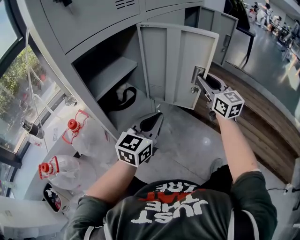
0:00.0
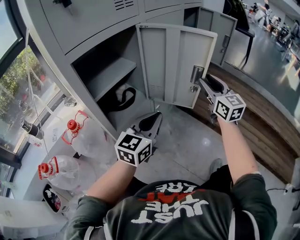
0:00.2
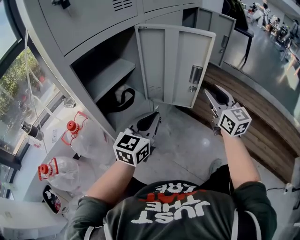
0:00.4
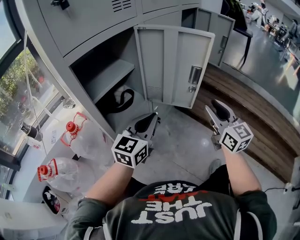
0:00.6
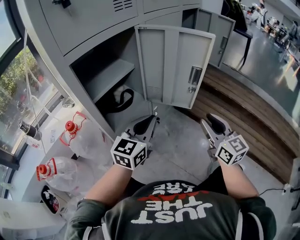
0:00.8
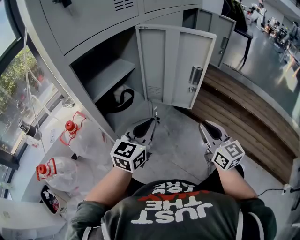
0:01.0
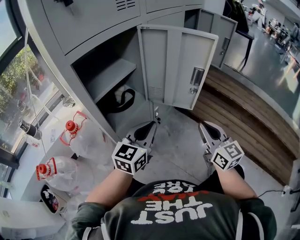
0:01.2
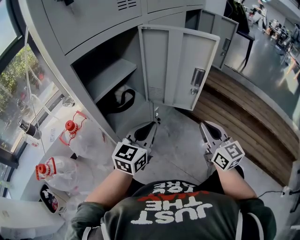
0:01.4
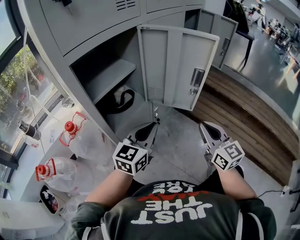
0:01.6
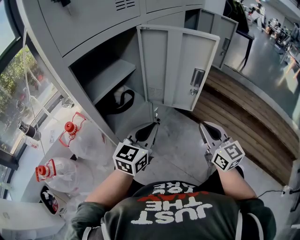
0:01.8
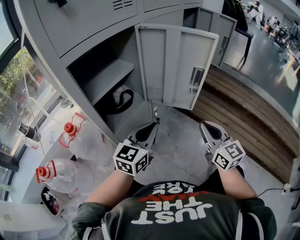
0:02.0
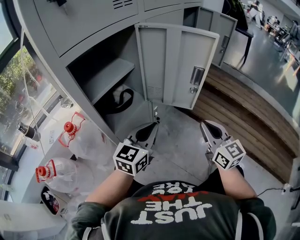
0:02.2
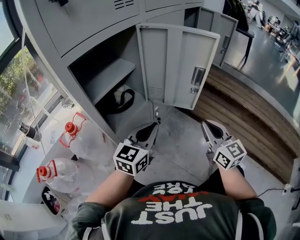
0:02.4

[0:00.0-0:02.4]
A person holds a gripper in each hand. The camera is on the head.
0:00.0 to 0:01.2: The right gripper is displaced backward and downward by approximately 20 cm.
0:01.2 to 0:02.4: Both grippers stay about where they are.

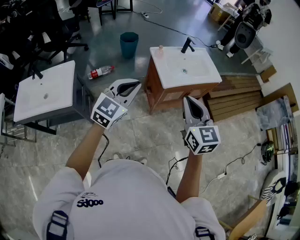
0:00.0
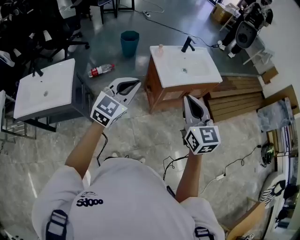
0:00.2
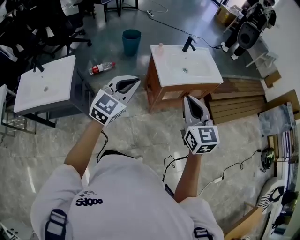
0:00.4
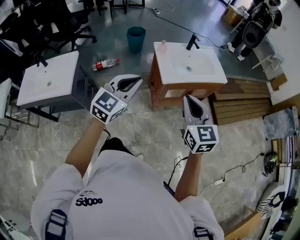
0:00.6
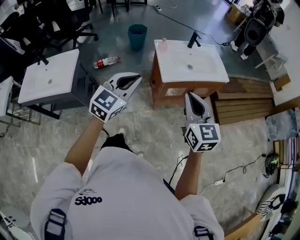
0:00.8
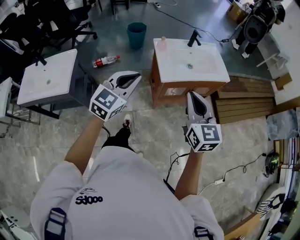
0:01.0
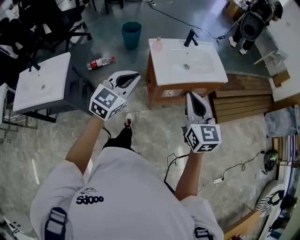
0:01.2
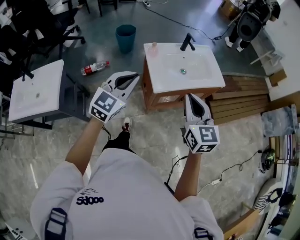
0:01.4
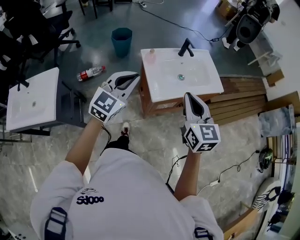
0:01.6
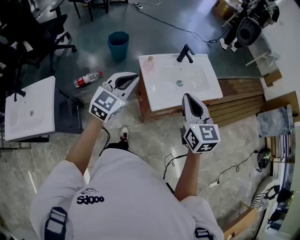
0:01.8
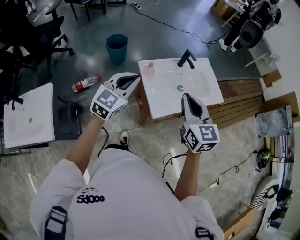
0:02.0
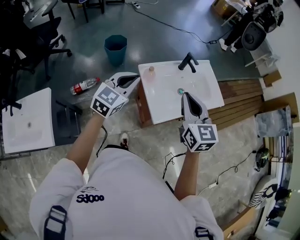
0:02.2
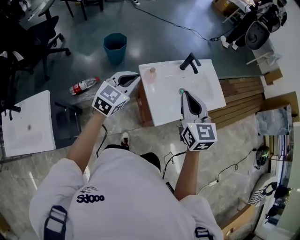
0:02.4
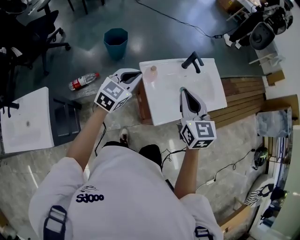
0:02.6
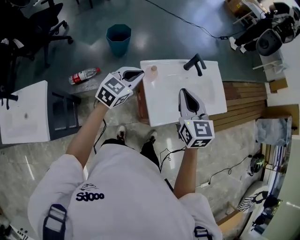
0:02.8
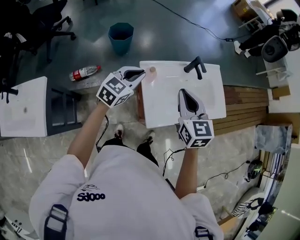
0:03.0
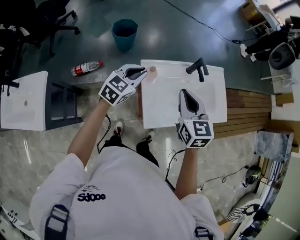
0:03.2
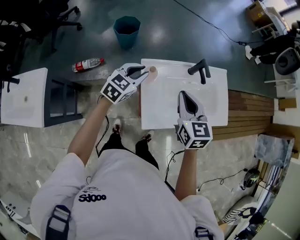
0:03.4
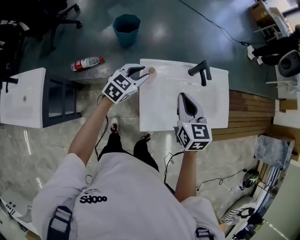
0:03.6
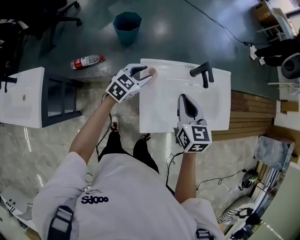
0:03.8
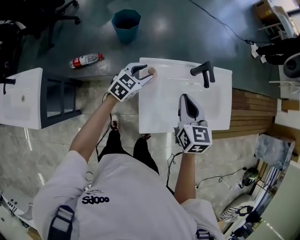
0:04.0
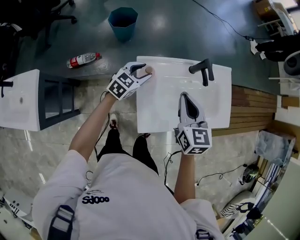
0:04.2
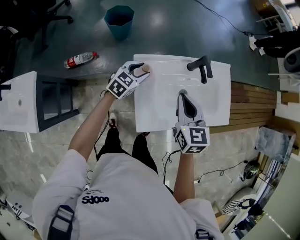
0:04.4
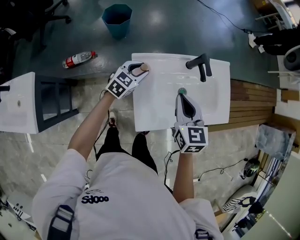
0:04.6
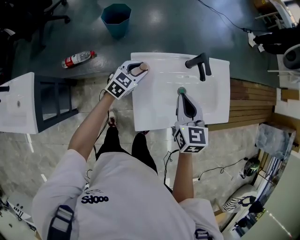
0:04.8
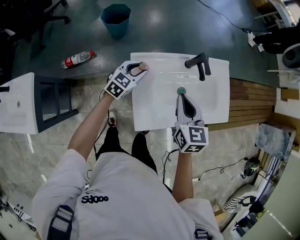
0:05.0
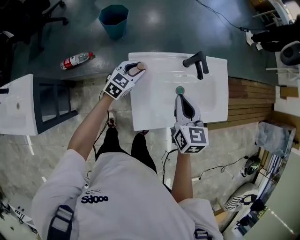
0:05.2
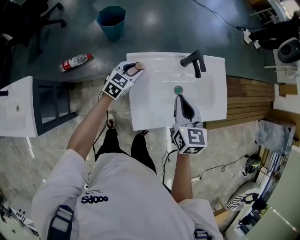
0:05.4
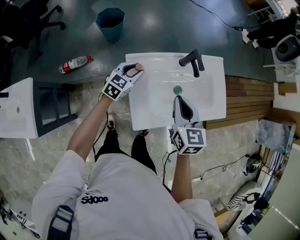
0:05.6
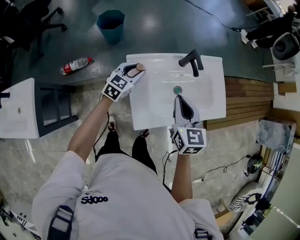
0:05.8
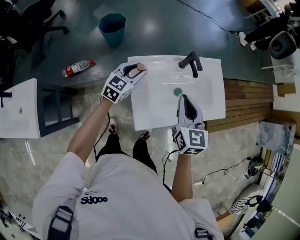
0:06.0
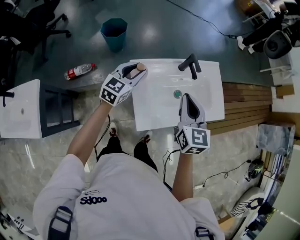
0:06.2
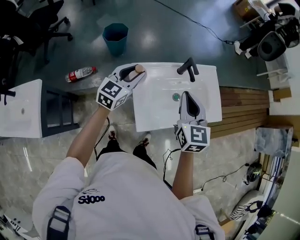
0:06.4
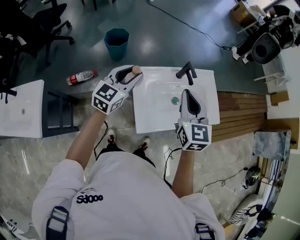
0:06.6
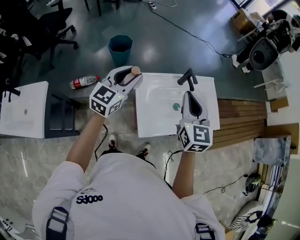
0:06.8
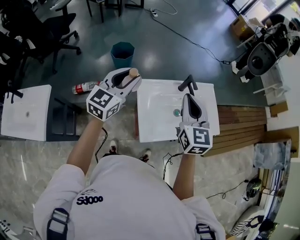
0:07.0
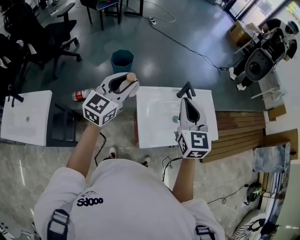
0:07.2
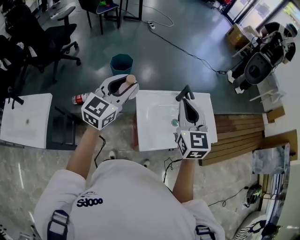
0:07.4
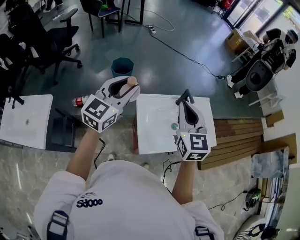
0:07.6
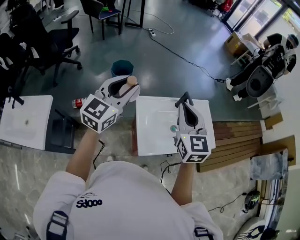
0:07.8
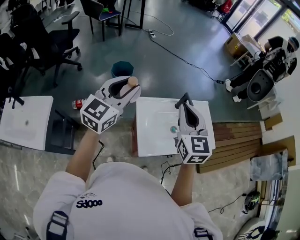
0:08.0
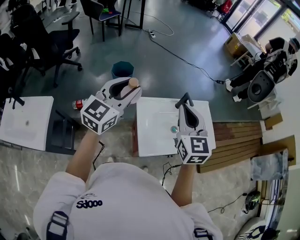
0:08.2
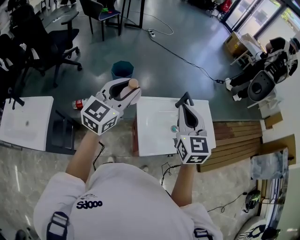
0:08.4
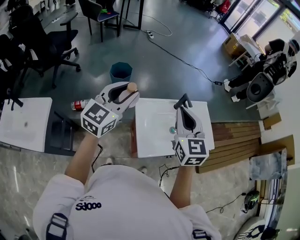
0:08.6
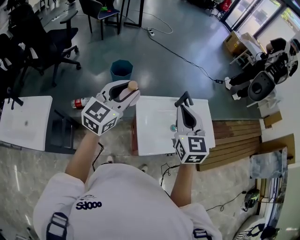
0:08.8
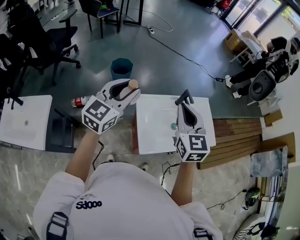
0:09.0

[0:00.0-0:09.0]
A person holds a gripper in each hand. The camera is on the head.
0:00.0 to 0:01.6: The two grippers go roughly 20 cm forward.
0:01.6 to 0:03.0: The right gripper shifts approximately 20 cm forward, while the left gripper travels forward and downward by approximately 25 cm, and turns by some 20 degrees.
0:03.0 to 0:04.4: The left gripper is displaced downward and forward by roughly 15 cm, and opens up; the right gripper is displaced downward and forward by roughly 10 cm.
0:04.4 to 0:06.0: The right gripper changes place by some 5 cm. The left gripper moves upward, some 5 cm.
0:06.0 to 0:07.6: The right gripper shifts about 15 cm upward and to the left. Meanwhile the left gripper shifts some 25 cm upward, and changes its angle by some 20 degrees.
0:07.6 to 0:09.0: The grippers stay close to where they were, moving slightly.

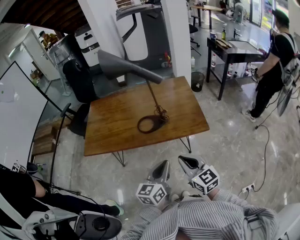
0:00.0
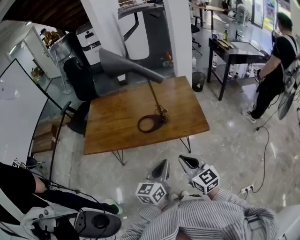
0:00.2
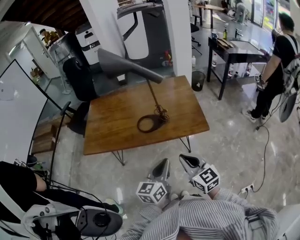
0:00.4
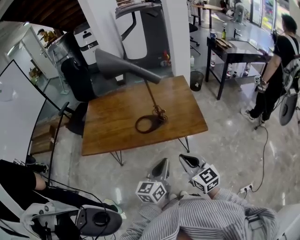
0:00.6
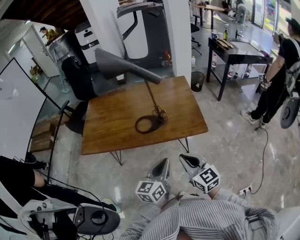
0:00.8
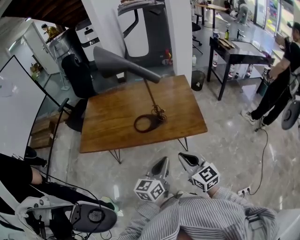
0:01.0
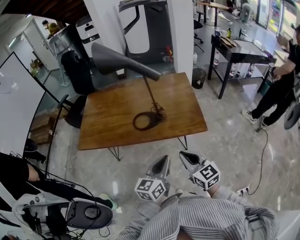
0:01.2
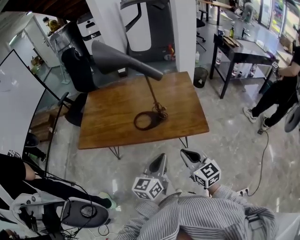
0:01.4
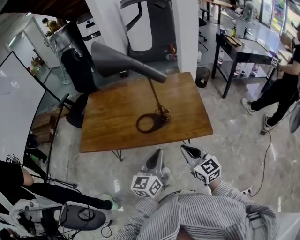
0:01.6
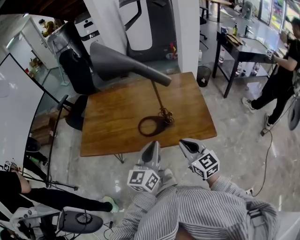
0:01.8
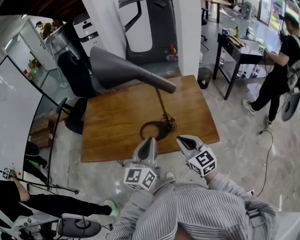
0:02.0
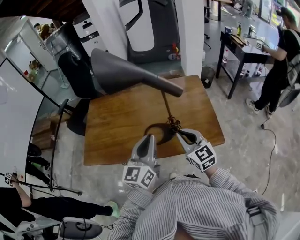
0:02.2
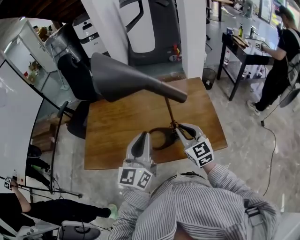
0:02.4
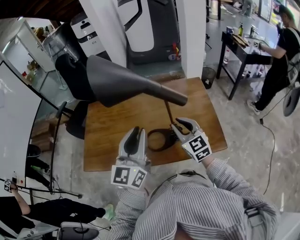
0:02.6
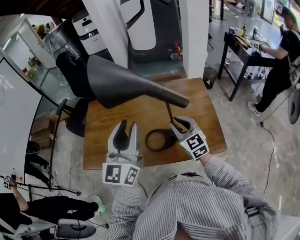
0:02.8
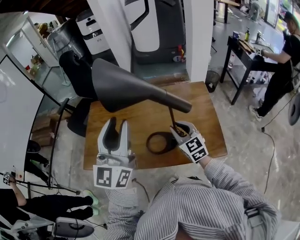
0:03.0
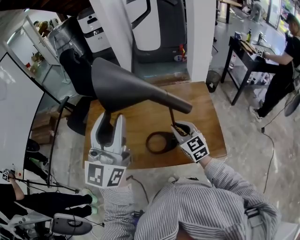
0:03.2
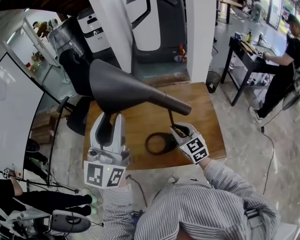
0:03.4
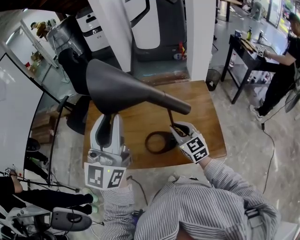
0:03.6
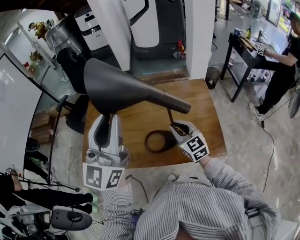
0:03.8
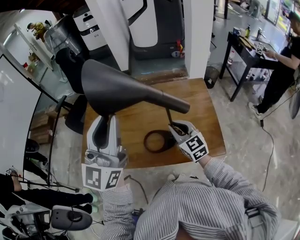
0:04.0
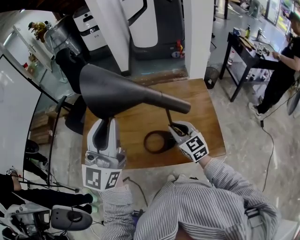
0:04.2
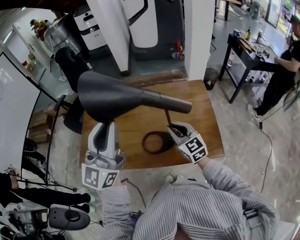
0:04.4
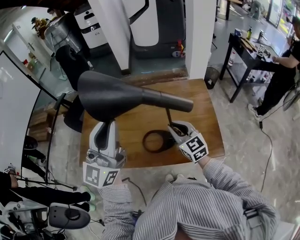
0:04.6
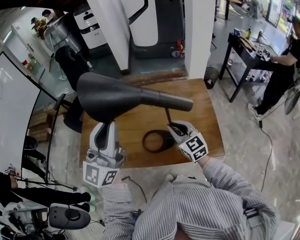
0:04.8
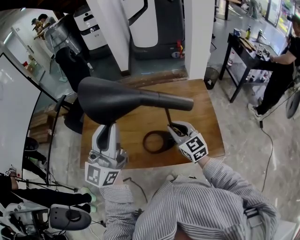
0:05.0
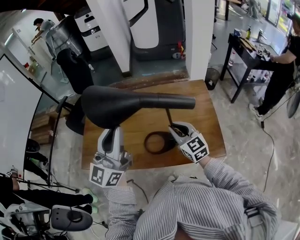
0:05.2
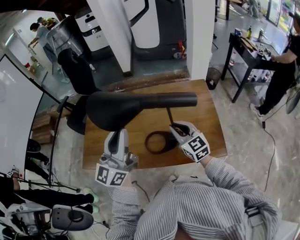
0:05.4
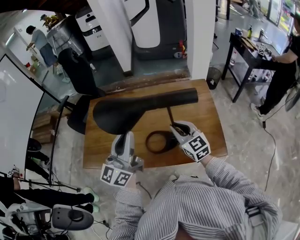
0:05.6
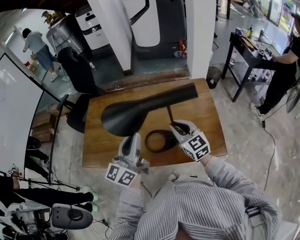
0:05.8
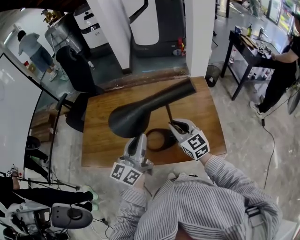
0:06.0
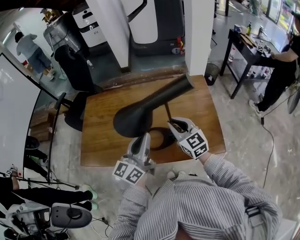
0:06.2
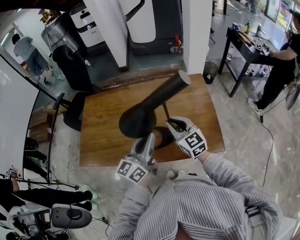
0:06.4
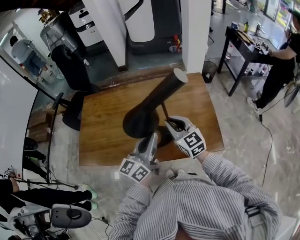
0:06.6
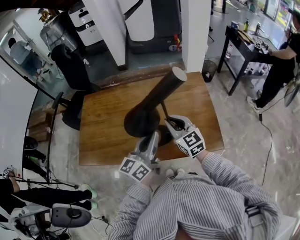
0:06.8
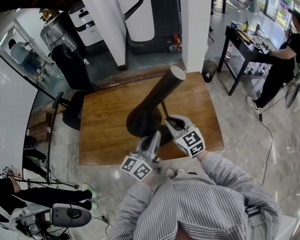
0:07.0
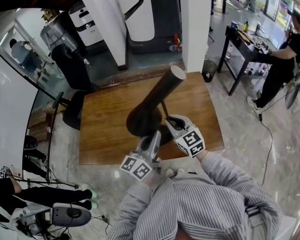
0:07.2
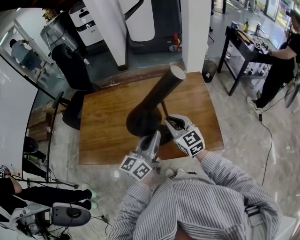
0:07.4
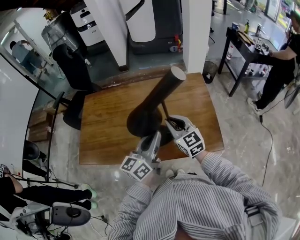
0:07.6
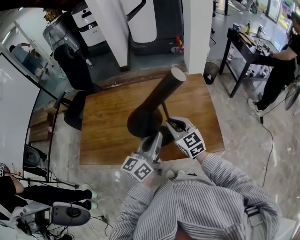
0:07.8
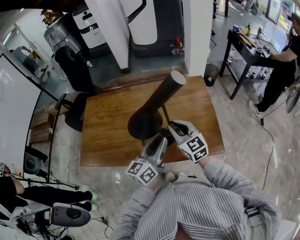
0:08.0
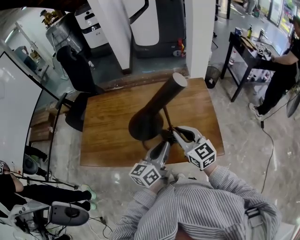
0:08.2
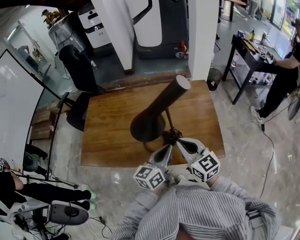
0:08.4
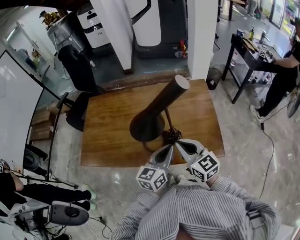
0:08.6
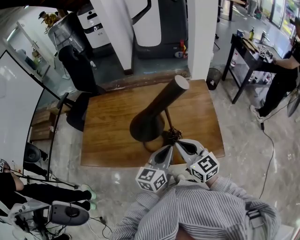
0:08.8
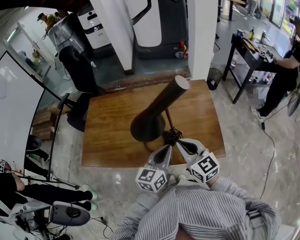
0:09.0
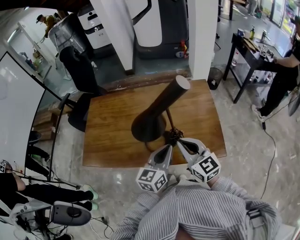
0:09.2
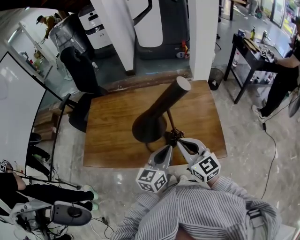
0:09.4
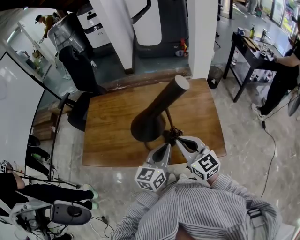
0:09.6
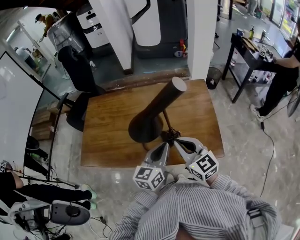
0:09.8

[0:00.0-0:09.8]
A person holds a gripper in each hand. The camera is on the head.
0:00.0 to 0:01.4: The left gripper changes place by approximately 5 cm, while the right gripper moves forward, some 5 cm.
0:01.4 to 0:02.8: The right gripper heads forward, covering some 30 cm. Meanwhile the left gripper moves forward, upward and to the left, roughly 35 cm, changes its angle by roughly 30 degrees, and opens its fingers.
0:02.8 to 0:04.2: The left gripper shifts approximately 5 cm upward.
0:04.2 to 0:05.6: The left gripper goes approximately 10 cm downward, and changes its angle by approximately 20 degrees.
0:05.6 to 0:07.0: The left gripper goes roughly 15 cm to the right and downward, and changes its angle by some 20 degrees.
0:07.0 to 0:08.4: The right gripper goes roughly 10 cm backward; the left gripper moves roughly 5 cm.
0:08.4 to 0:09.8: The grippers stay close to where they were, moving slightly.

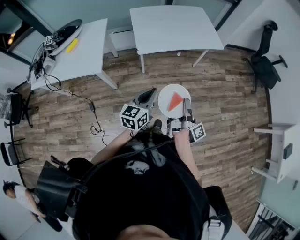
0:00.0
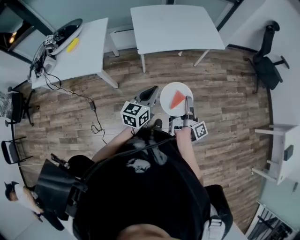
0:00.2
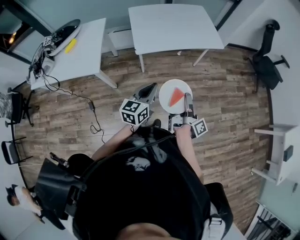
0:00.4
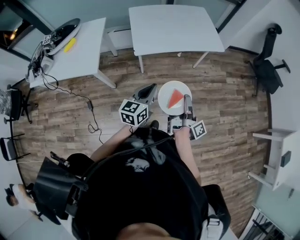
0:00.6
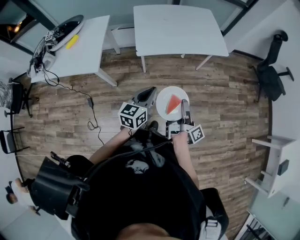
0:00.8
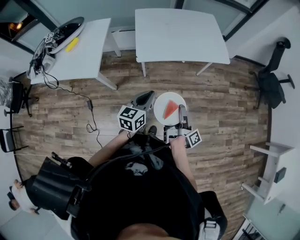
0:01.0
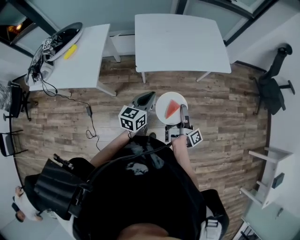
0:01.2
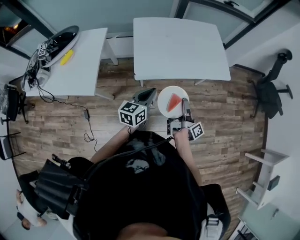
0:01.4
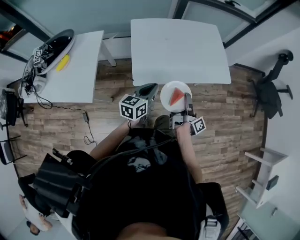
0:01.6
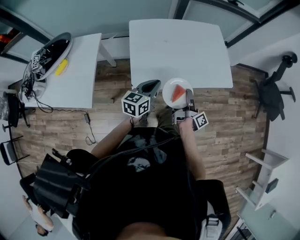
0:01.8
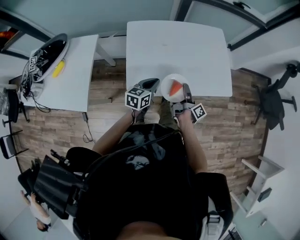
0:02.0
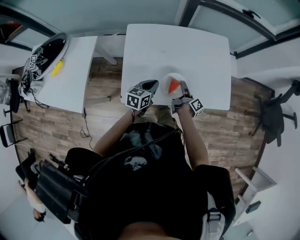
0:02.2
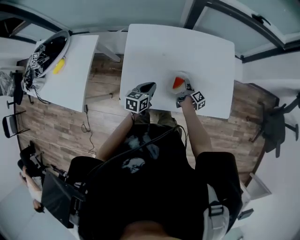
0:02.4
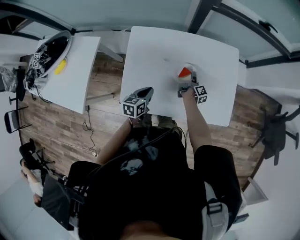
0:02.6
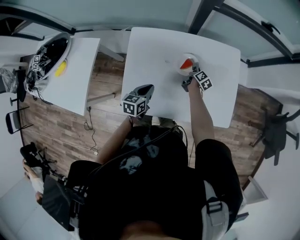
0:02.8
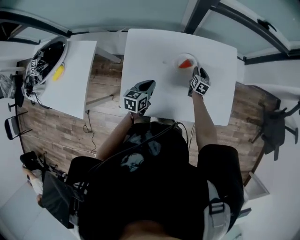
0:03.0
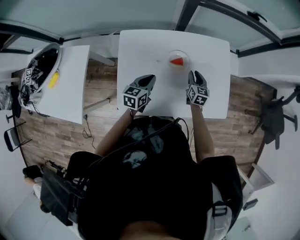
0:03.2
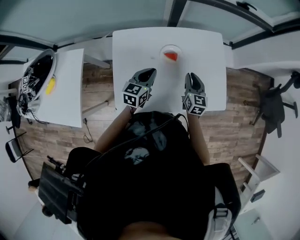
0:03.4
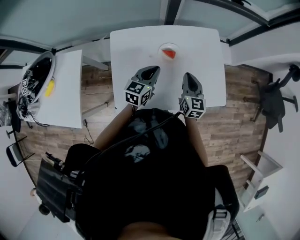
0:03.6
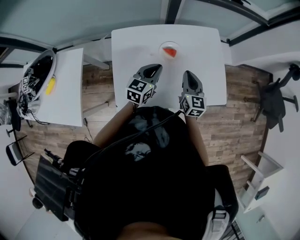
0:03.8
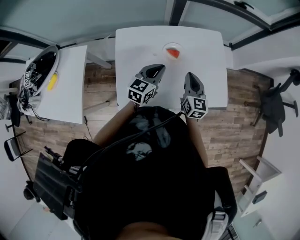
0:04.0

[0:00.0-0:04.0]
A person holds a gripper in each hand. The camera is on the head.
0:00.0 to 0:01.4: The left gripper ends up roughly 25 cm from where it was.
0:01.4 to 0:02.6: The left gripper changes place by roughly 35 cm, and swivels roughly 30 degrees.
0:02.6 to 0:04.0: The left gripper shifts about 15 cm upward, and turns by some 30 degrees.
